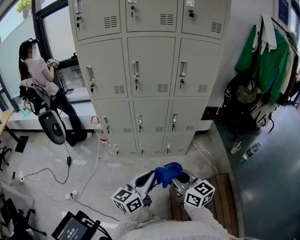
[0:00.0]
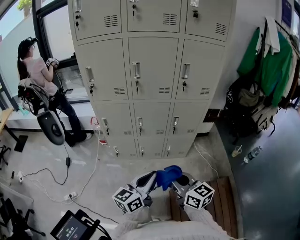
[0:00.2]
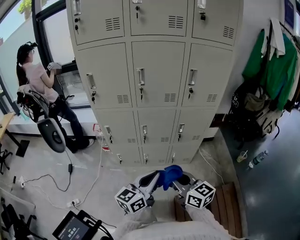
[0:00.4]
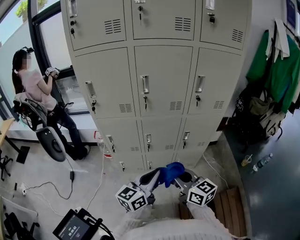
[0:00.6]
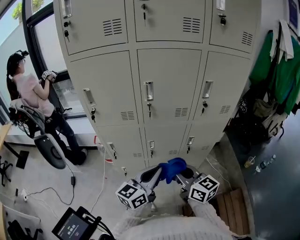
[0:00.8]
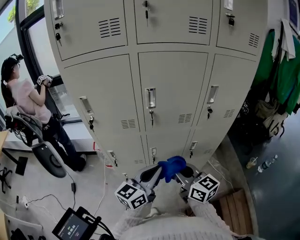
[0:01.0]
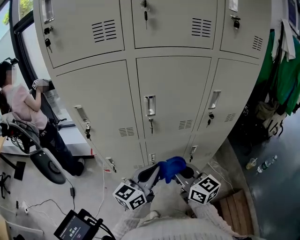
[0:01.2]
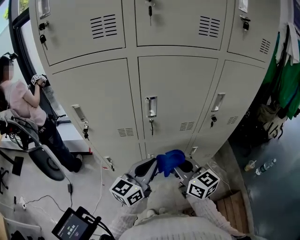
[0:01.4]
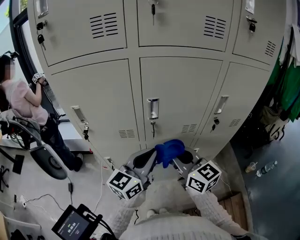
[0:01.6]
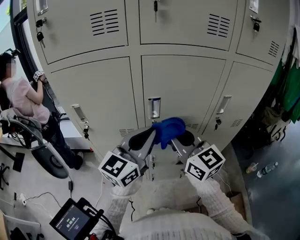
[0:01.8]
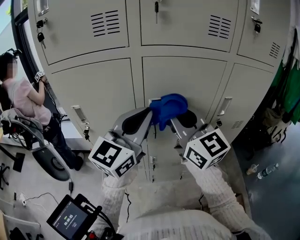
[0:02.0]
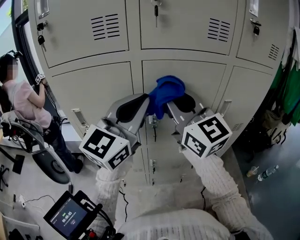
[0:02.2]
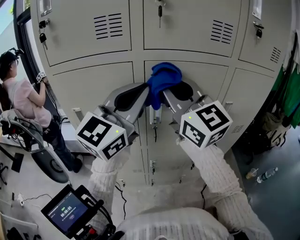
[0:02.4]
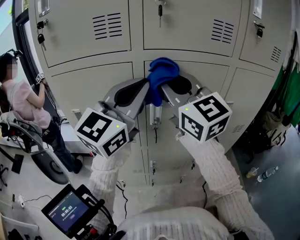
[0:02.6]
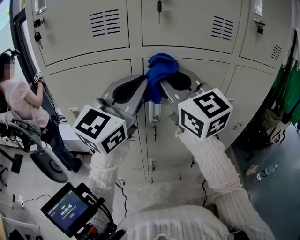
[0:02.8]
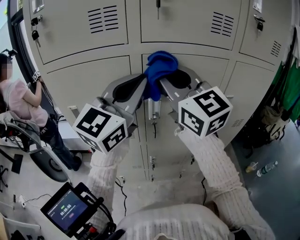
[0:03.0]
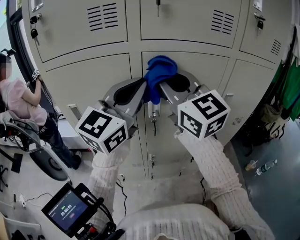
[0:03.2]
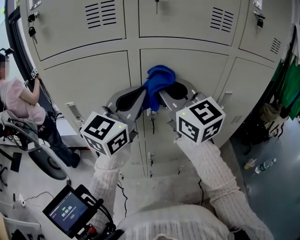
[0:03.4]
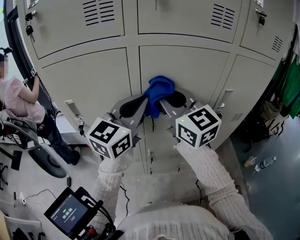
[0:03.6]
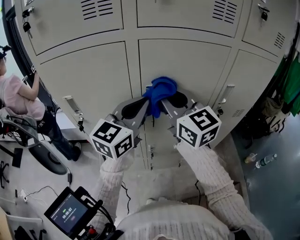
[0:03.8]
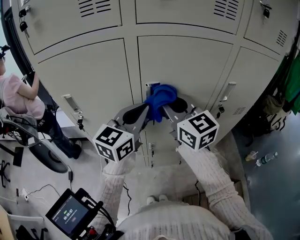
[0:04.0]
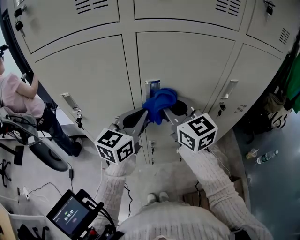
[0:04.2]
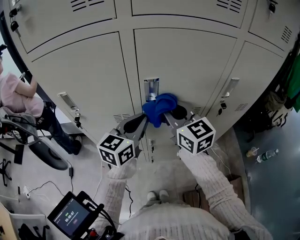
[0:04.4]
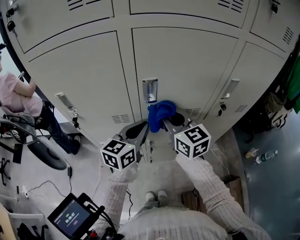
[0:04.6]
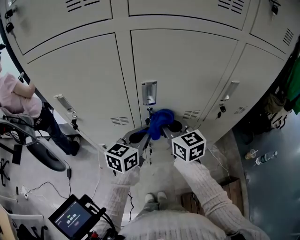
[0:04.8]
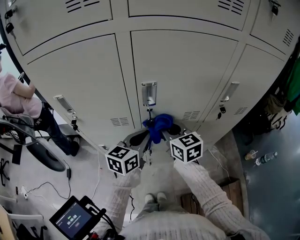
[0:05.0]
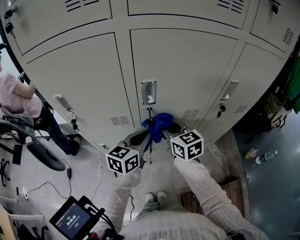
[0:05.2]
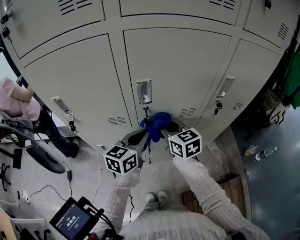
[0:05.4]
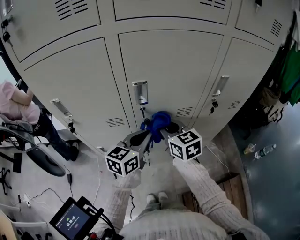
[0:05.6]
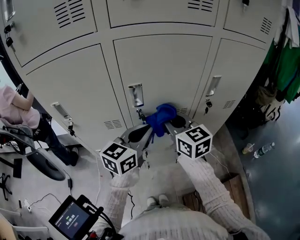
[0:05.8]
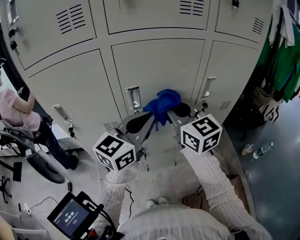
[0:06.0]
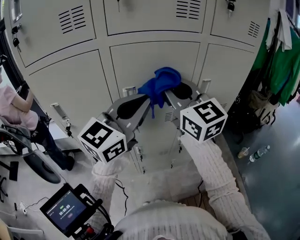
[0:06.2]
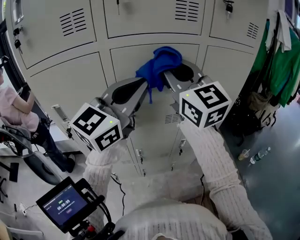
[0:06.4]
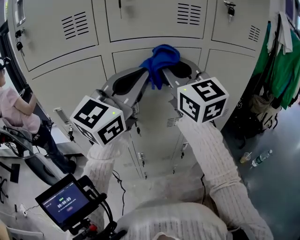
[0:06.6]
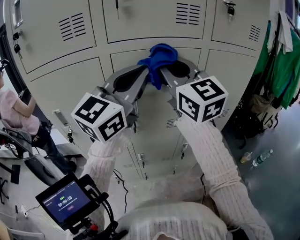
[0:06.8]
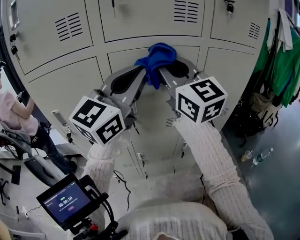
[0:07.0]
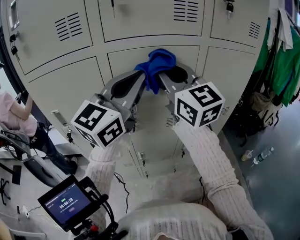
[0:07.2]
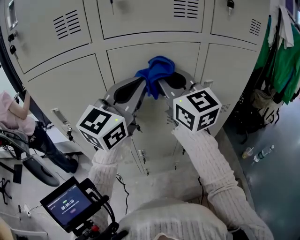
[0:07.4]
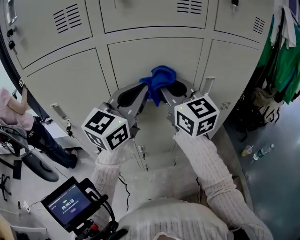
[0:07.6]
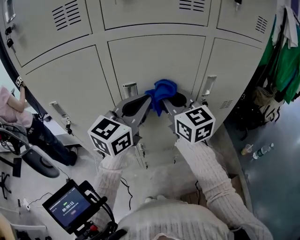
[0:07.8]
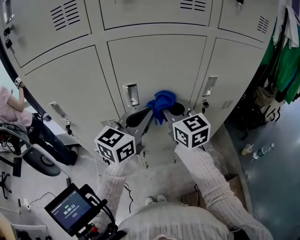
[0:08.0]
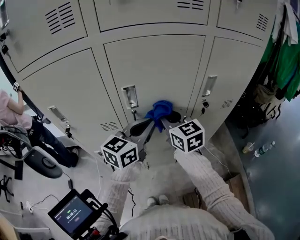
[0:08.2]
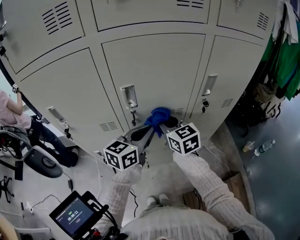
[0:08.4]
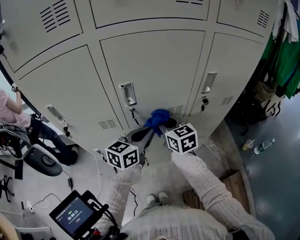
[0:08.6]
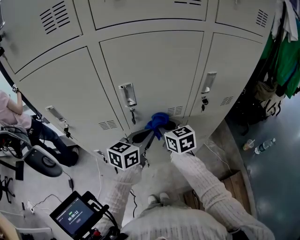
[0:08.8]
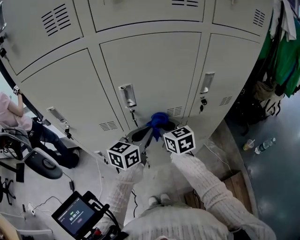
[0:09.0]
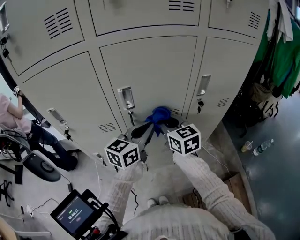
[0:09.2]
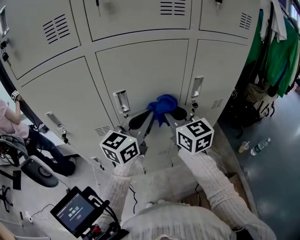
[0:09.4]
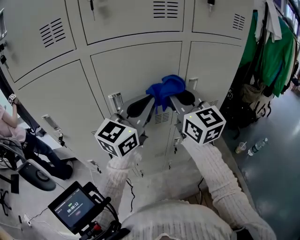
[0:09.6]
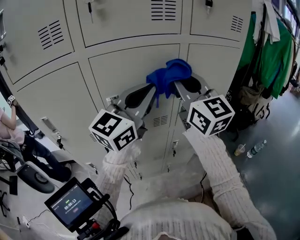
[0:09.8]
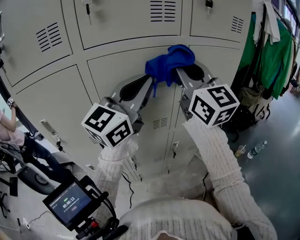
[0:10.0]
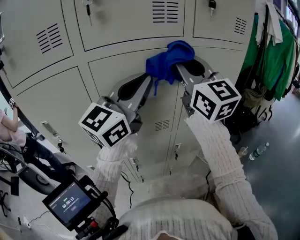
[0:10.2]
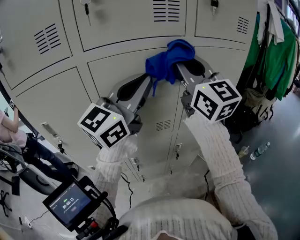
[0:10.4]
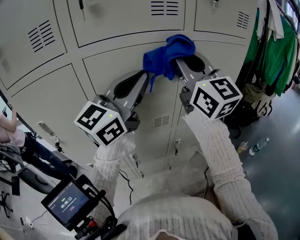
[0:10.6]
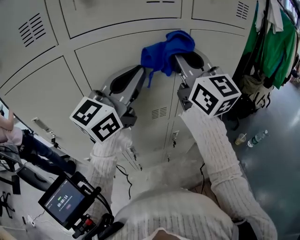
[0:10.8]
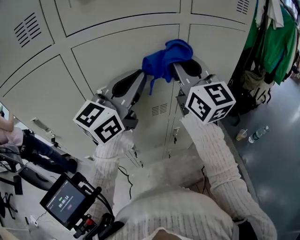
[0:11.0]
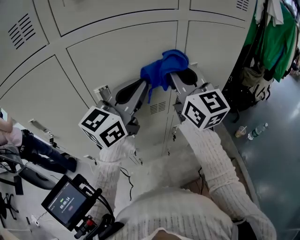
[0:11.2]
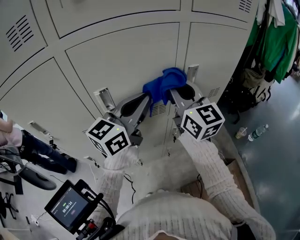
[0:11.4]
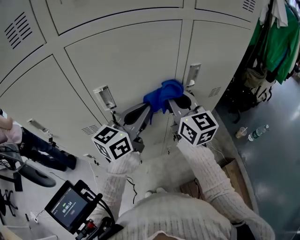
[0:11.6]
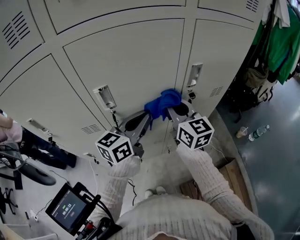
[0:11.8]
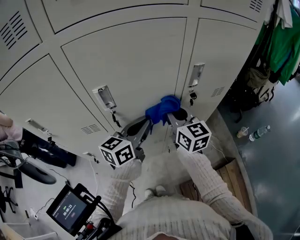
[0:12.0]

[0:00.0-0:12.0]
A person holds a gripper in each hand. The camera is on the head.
0:00.0 to 0:01.6: The pair of grippers is taken forward, roughly 40 cm.
0:01.6 to 0:03.0: The left gripper travels upward by some 25 cm, and changes its angle by about 30 degrees, while the right gripper shifts roughly 25 cm upward and forward, and swivels some 30 degrees.
0:03.0 to 0:04.4: The grippers both shift downward by approximately 25 cm. The left gripper changes its angle by roughly 30 degrees; the right gripper rotates some 20 degrees.
0:04.4 to 0:06.0: The grippers both shift upward and to the right by roughly 10 cm.
0:06.0 to 0:07.6: The grippers both shift upward by roughly 5 cm.
0:07.6 to 0:09.0: The grippers both shift downward by approximately 25 cm. The left gripper turns by about 30 degrees, while the right gripper rotates some 30 degrees.
0:09.0 to 0:10.4: The two grippers go some 30 cm upward. The left gripper turns by about 40 degrees; the right gripper points its fingers approximately 40 degrees further upward.
0:10.4 to 0:12.0: Both grippers travel together downward, roughly 30 cm. The left gripper rotates some 40 degrees; the right gripper turns by about 30 degrees.

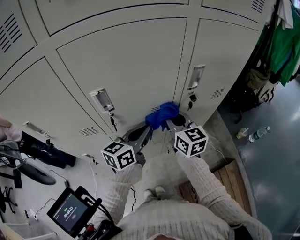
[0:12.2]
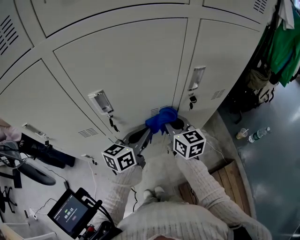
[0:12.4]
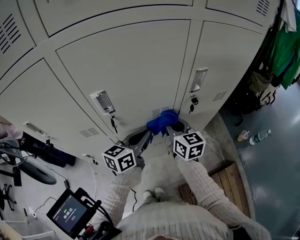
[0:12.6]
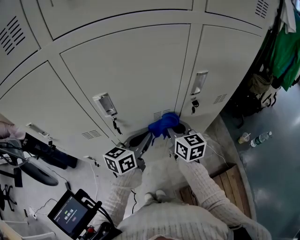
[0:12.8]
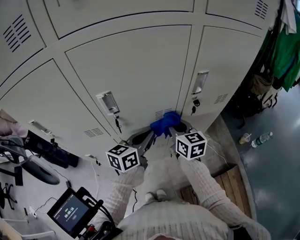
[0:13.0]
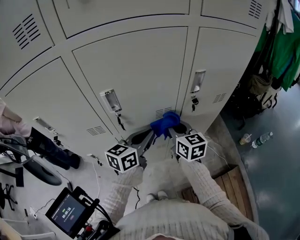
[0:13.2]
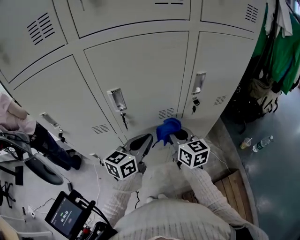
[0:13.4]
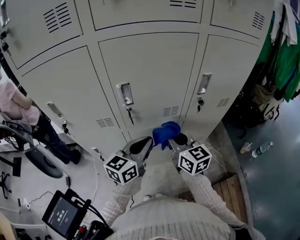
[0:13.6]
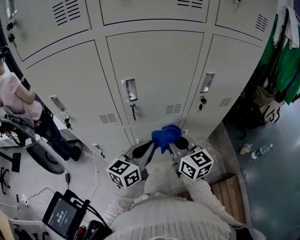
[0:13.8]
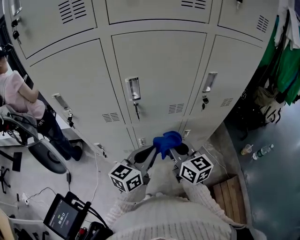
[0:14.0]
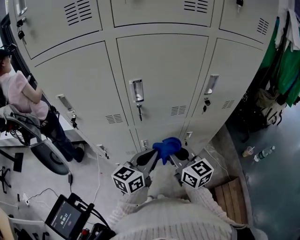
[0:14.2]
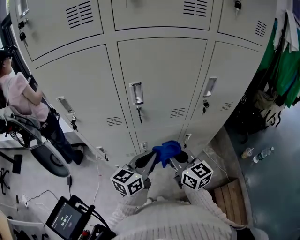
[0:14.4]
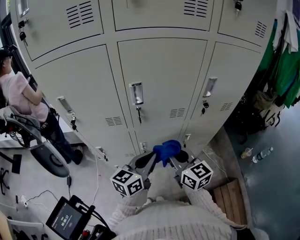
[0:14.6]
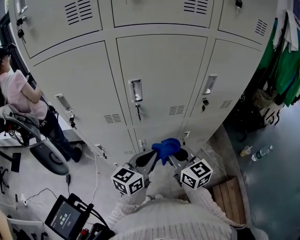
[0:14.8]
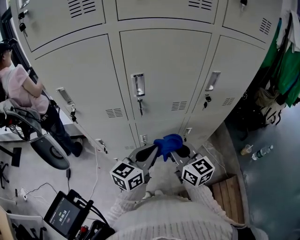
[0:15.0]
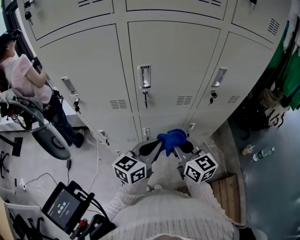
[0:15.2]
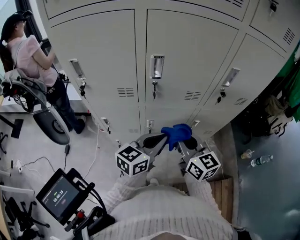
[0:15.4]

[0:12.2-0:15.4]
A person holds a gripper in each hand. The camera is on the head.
0:12.2 to 0:13.8: The grippers both shift backward by about 10 cm.
0:13.8 to 0:15.4: The right gripper ends up some 5 cm from where it was.

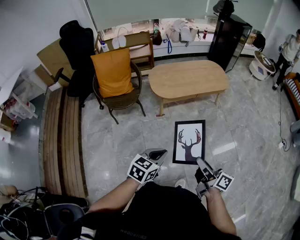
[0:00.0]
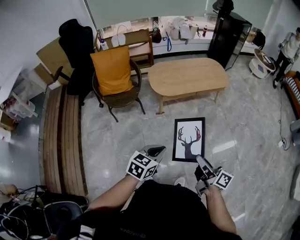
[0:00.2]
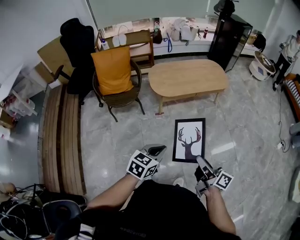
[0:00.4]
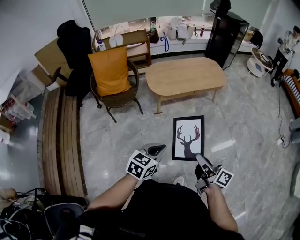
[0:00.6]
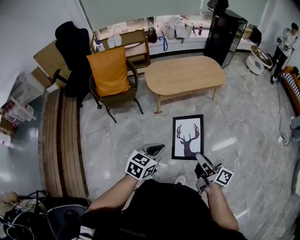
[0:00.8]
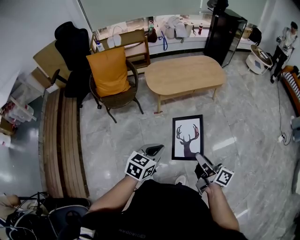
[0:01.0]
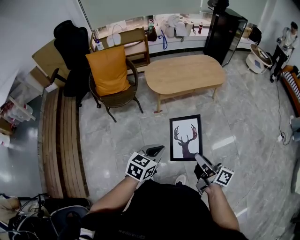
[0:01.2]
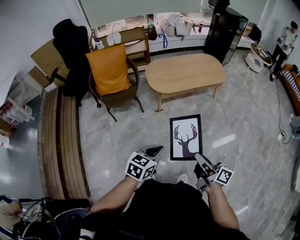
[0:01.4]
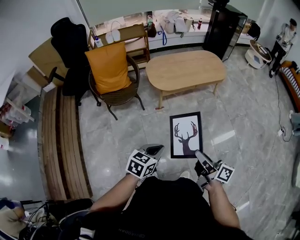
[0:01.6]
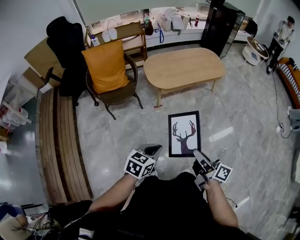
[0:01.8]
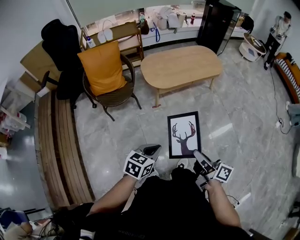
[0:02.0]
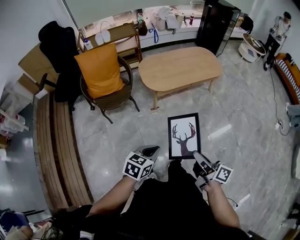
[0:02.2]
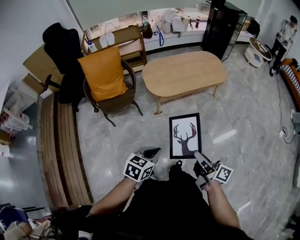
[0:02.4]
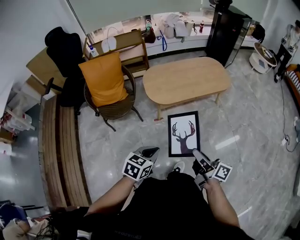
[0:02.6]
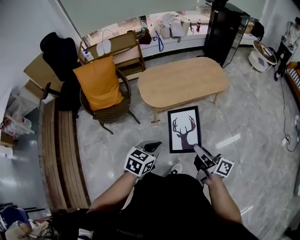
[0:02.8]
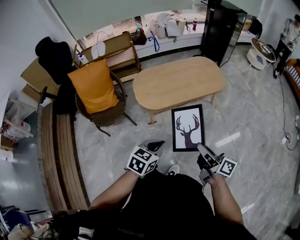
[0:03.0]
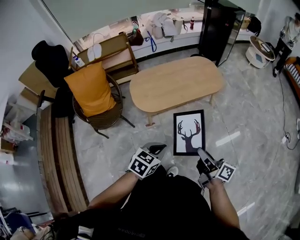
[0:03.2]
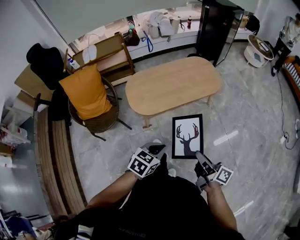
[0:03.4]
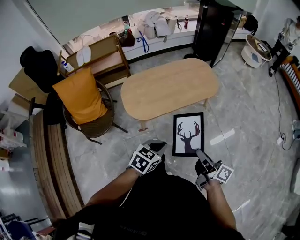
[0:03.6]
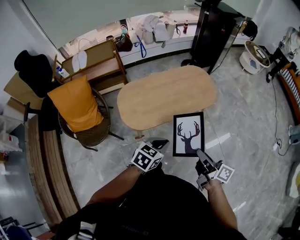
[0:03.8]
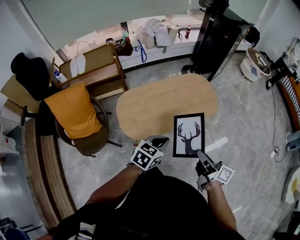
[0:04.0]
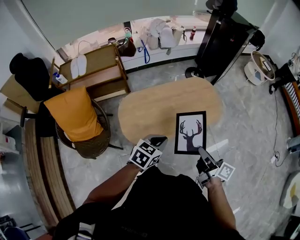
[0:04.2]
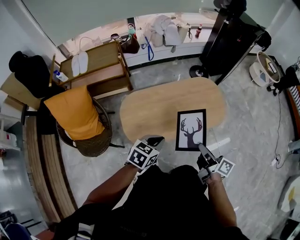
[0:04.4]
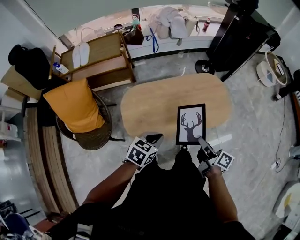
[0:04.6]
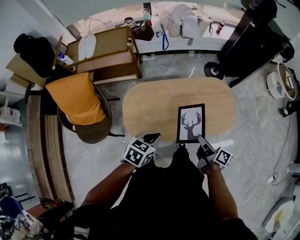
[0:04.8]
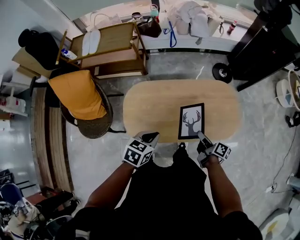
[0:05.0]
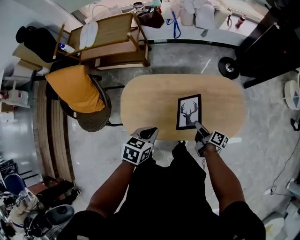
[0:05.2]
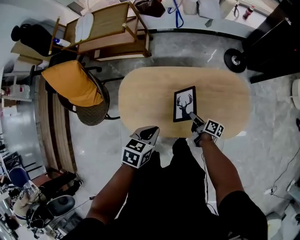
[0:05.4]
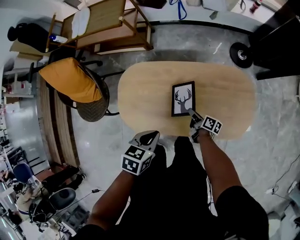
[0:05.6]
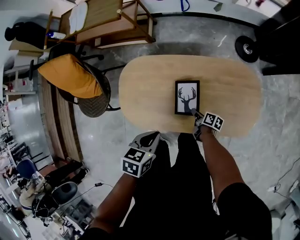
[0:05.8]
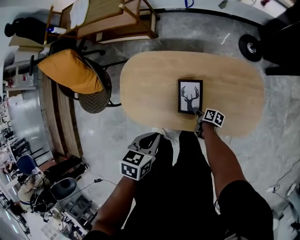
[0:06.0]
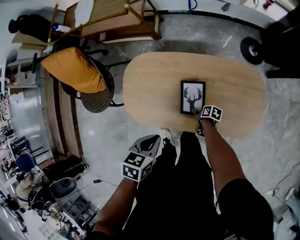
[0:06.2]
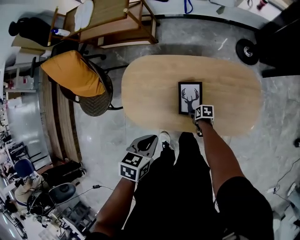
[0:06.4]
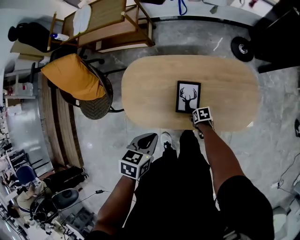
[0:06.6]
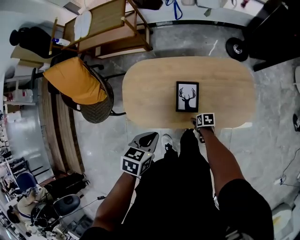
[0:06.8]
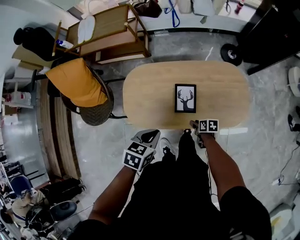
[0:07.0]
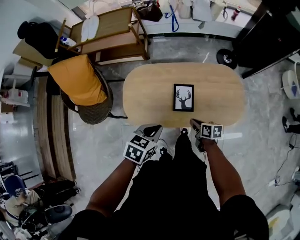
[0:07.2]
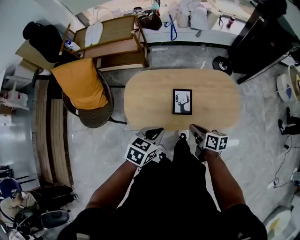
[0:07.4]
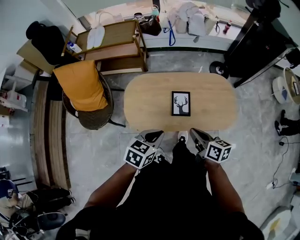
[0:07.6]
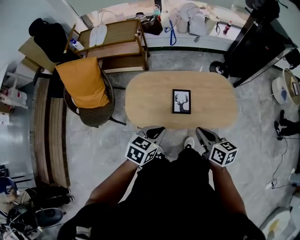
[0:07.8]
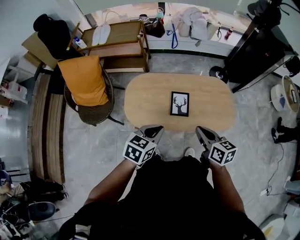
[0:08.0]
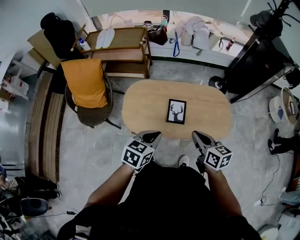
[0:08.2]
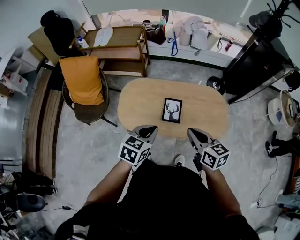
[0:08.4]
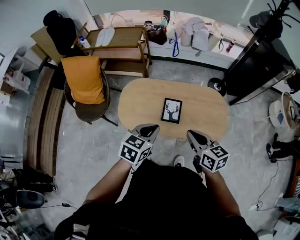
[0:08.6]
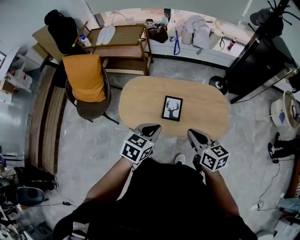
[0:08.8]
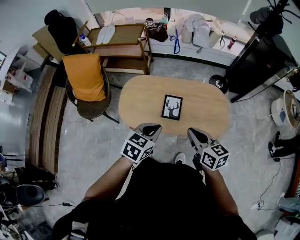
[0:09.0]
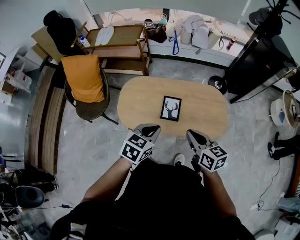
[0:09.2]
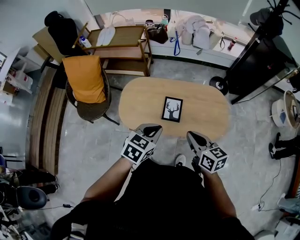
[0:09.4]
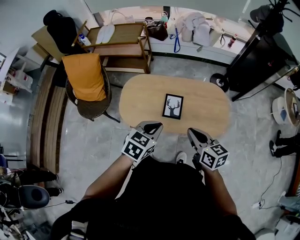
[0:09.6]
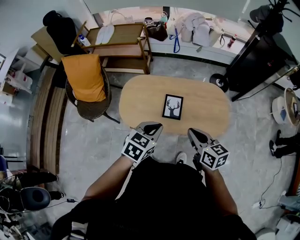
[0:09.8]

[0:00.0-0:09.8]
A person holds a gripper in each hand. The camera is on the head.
0:00.0 to 0:01.4: The grippers stay close to where they were, moving slightly.
0:01.4 to 0:02.8: The grippers both shift forward by about 20 cm.
0:02.8 to 0:04.2: Both grippers move forward, approximately 40 cm.
0:04.2 to 0:05.6: The right gripper is displaced downward by approximately 40 cm, and swivels roughly 40 degrees; the left gripper moves approximately 25 cm, and turns by about 40 degrees.
0:05.6 to 0:07.0: The left gripper changes place by about 10 cm; the right gripper travels downward and back again, approximately 10 cm each way, turns by roughly 40 degrees, and opens up.
0:07.0 to 0:08.4: The left gripper moves upward and backward, approximately 15 cm; the right gripper is displaced upward by about 40 cm, points its fingers some 30 degrees further upward, and closes.
0:08.4 to 0:09.8: The grippers stay close to where they were, moving slightly.
